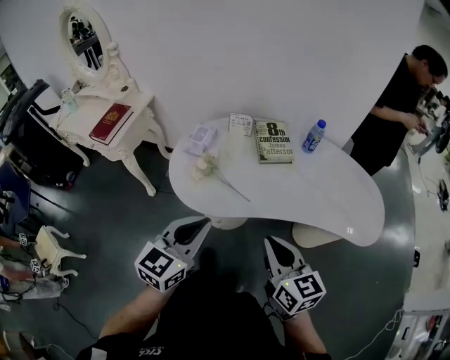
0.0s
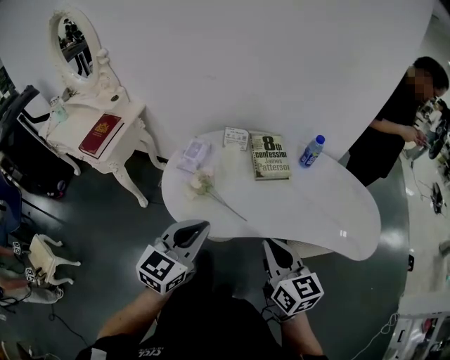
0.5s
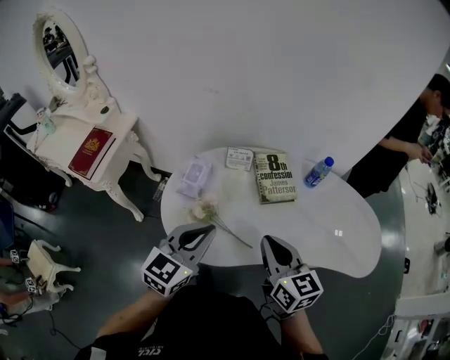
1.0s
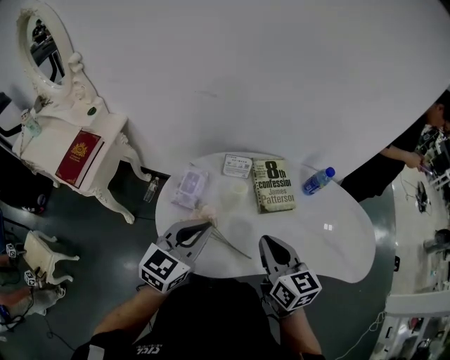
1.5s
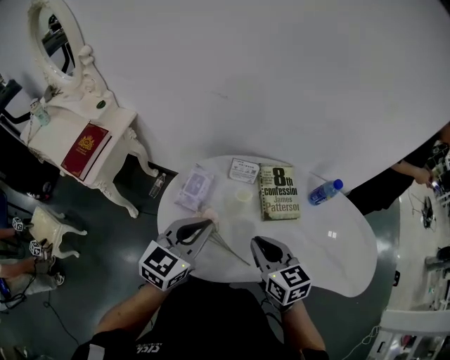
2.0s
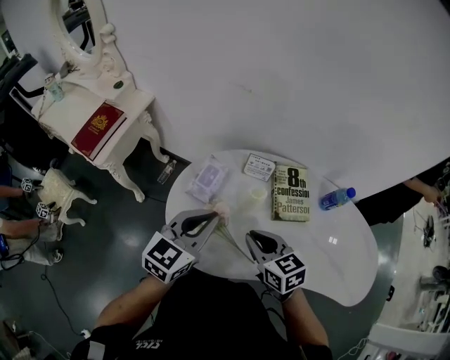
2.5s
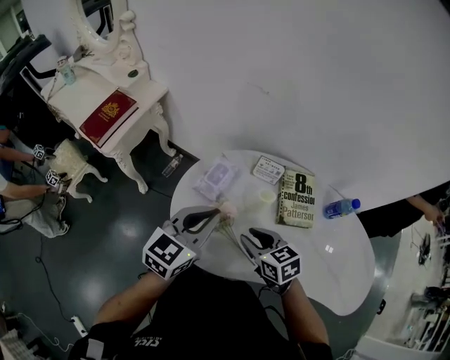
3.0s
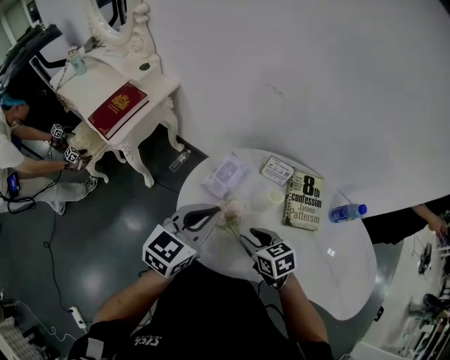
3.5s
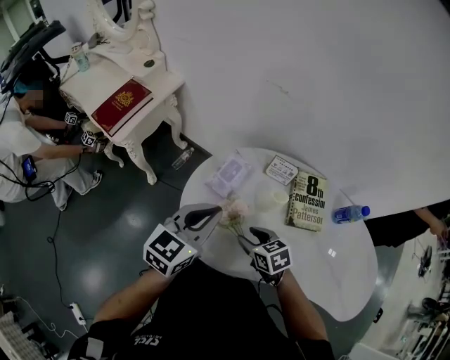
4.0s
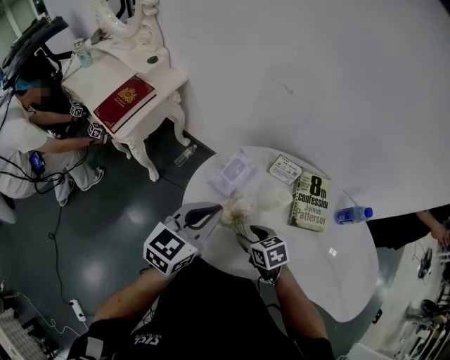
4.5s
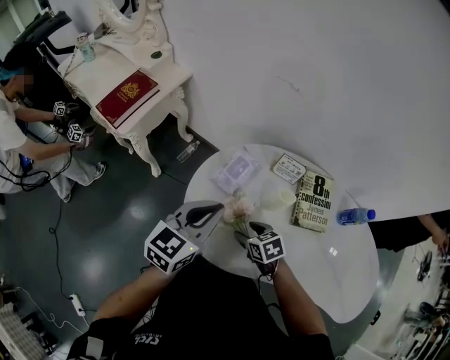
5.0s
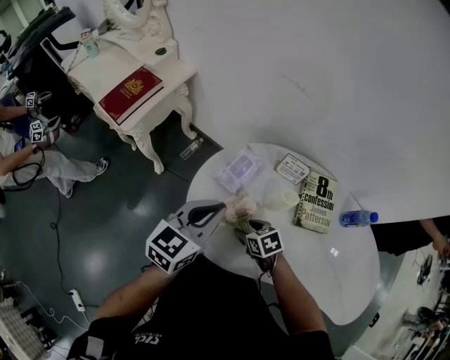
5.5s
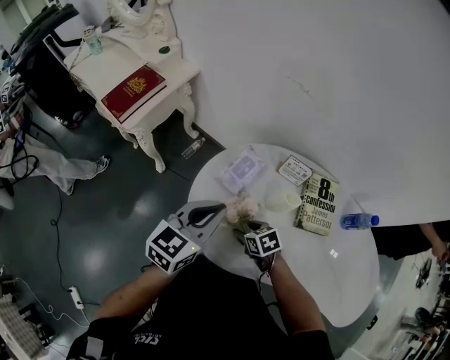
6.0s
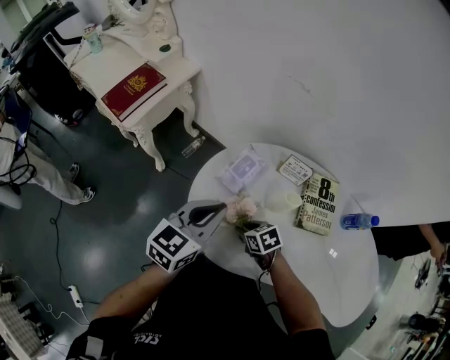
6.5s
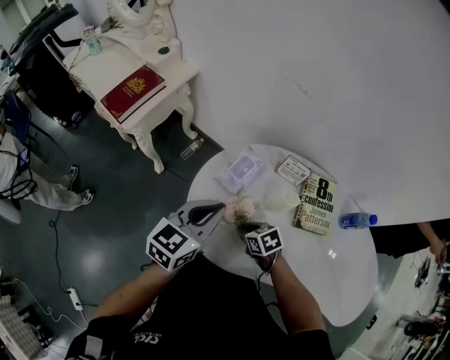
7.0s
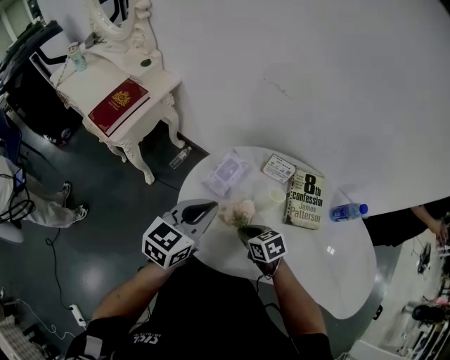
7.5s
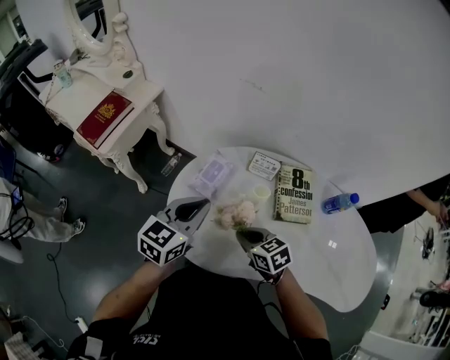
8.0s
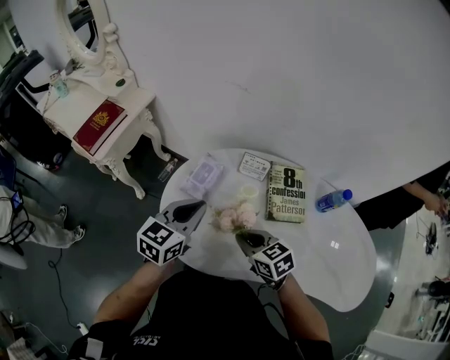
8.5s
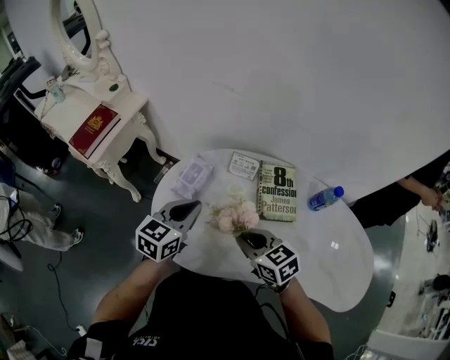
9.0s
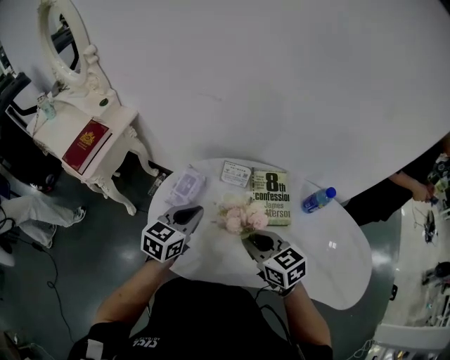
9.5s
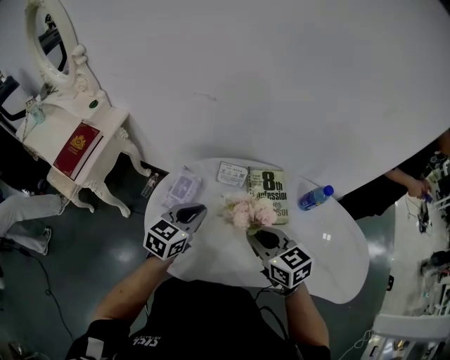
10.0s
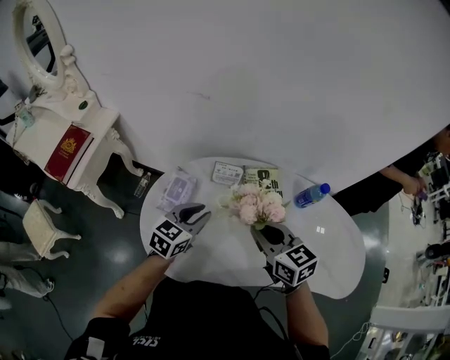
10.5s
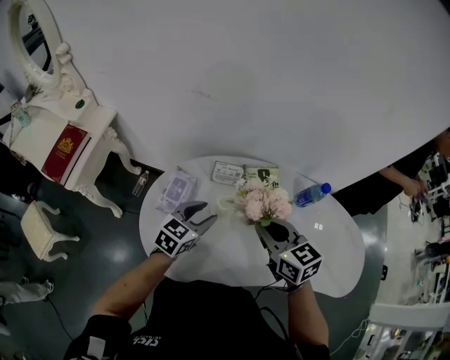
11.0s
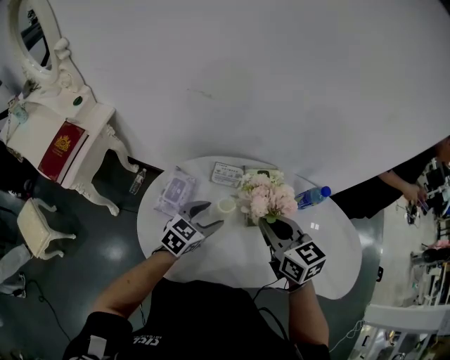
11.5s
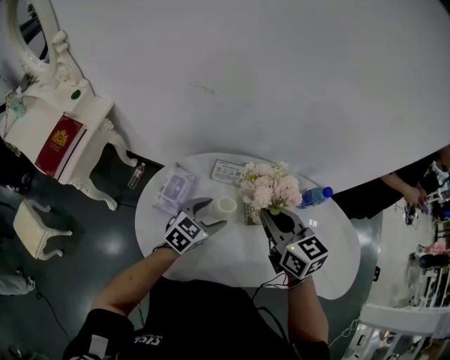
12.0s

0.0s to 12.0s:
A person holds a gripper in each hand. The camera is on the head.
0.0s to 2.0s: The left gripper goes approximately 30 cm forward. Meanwhile the right gripper shifts some 30 cm forward and to the left.
2.0s to 4.0s: The right gripper goes about 20 cm downward and to the left, rotates some 30 degrees, and opens up. Meanwhile the left gripper shifts roughly 5 cm to the left.
4.0s to 6.0s: The right gripper goes about 10 cm downward.
6.0s to 8.0s: The right gripper moves upward, about 10 cm, and closes up.
8.0s to 10.0s: The left gripper travels to the right and downward by about 10 cm; the right gripper heads upward and to the right, covering about 15 cm, and turns by some 20 degrees.
10.0s to 12.0s: The left gripper travels downward and to the right by about 10 cm, and opens. Meanwhile the right gripper shifts some 10 cm forward.

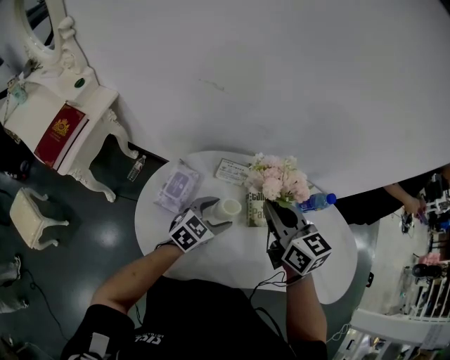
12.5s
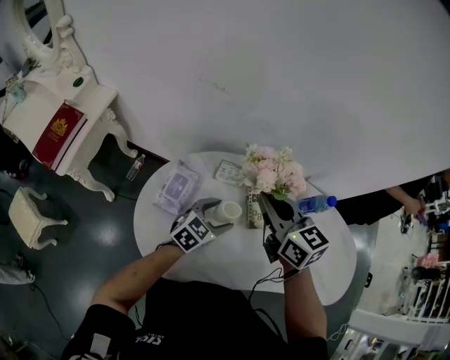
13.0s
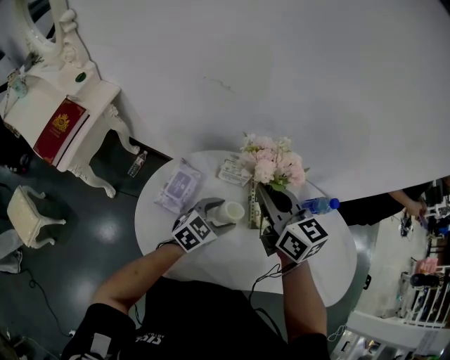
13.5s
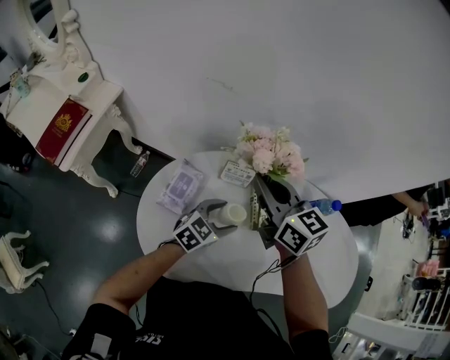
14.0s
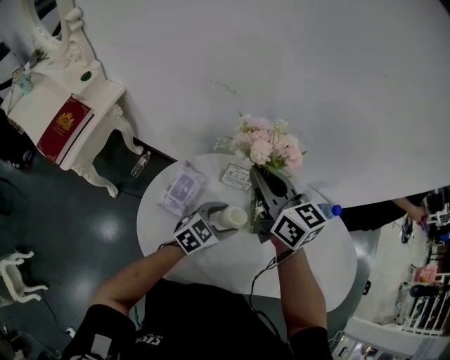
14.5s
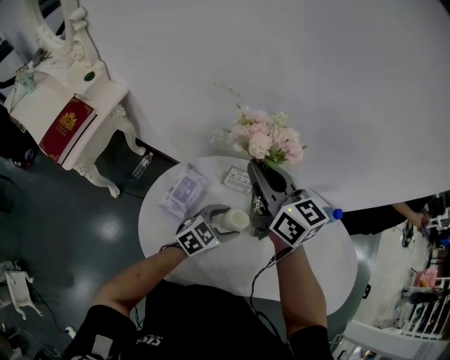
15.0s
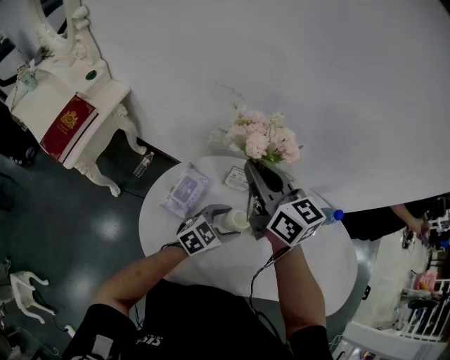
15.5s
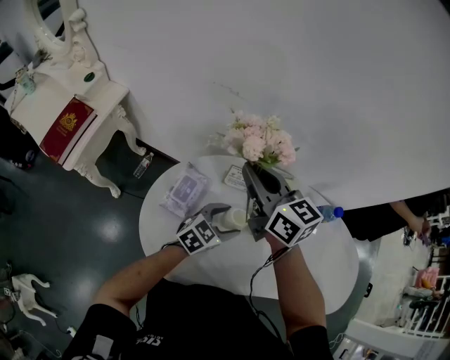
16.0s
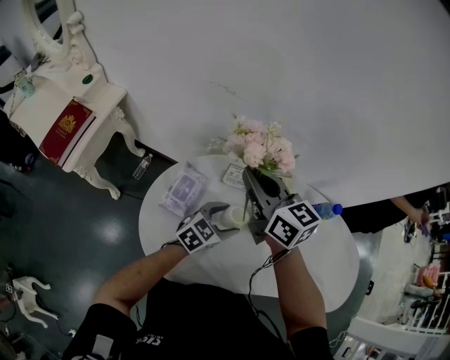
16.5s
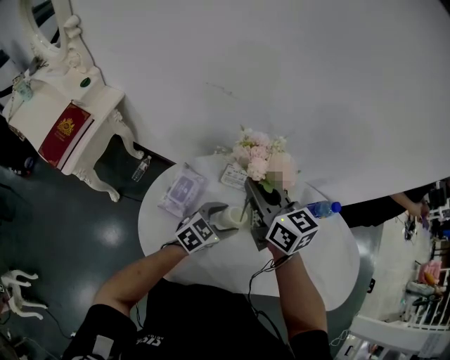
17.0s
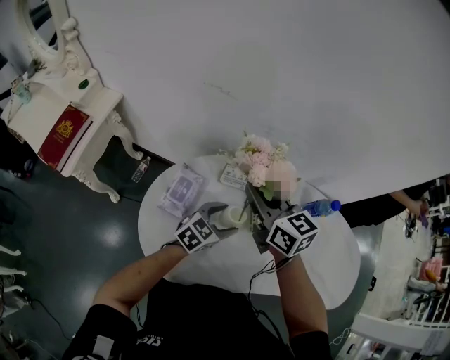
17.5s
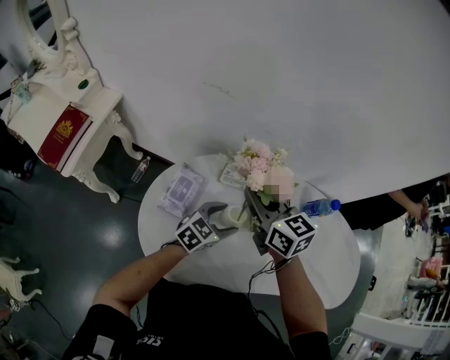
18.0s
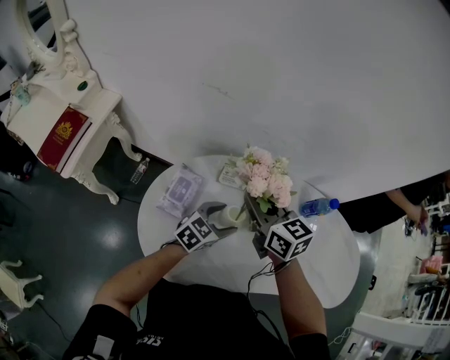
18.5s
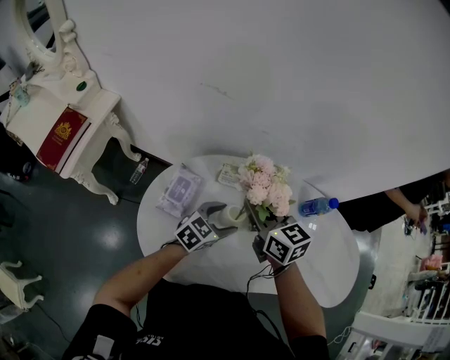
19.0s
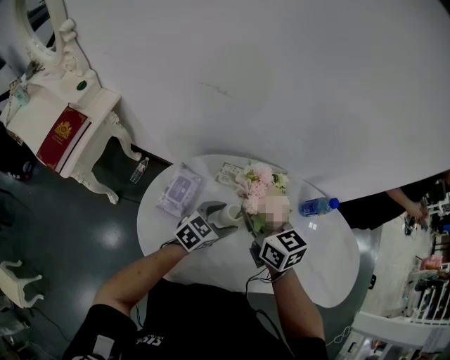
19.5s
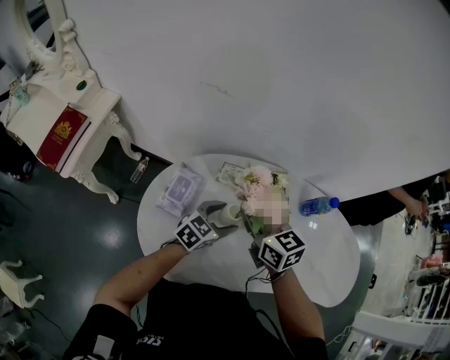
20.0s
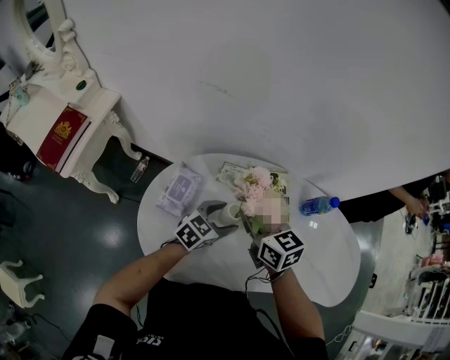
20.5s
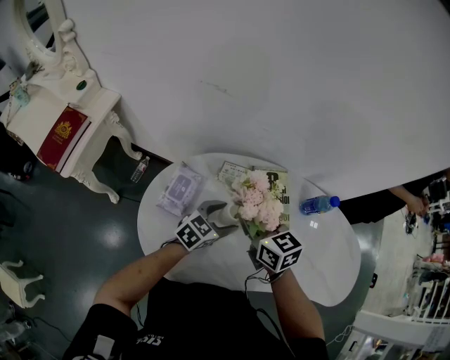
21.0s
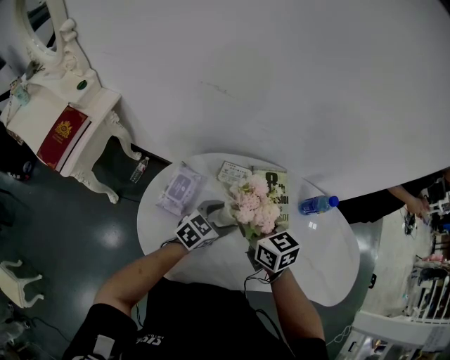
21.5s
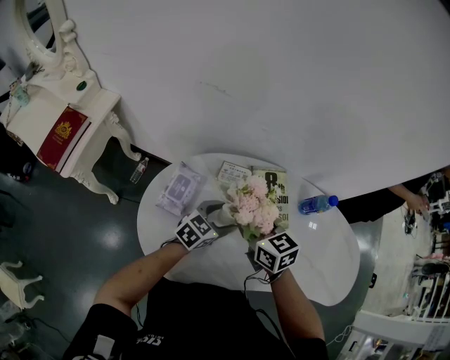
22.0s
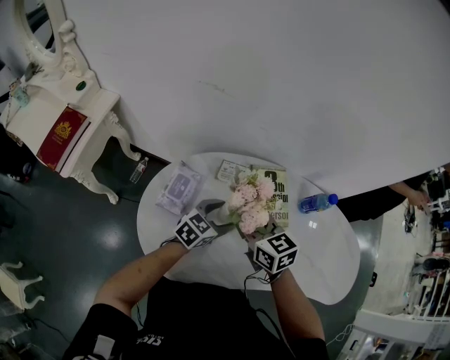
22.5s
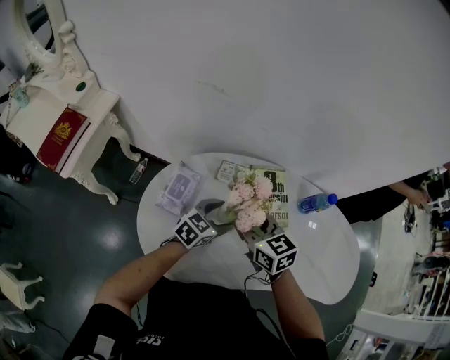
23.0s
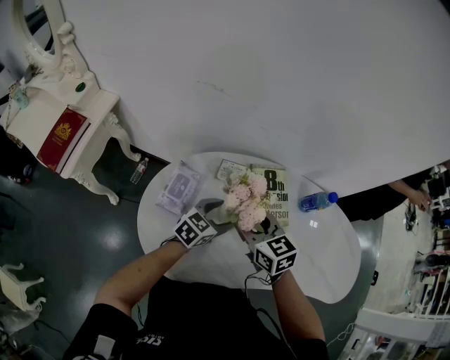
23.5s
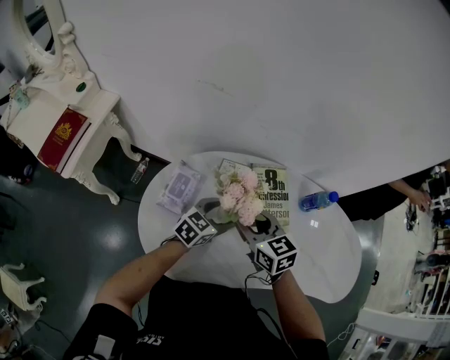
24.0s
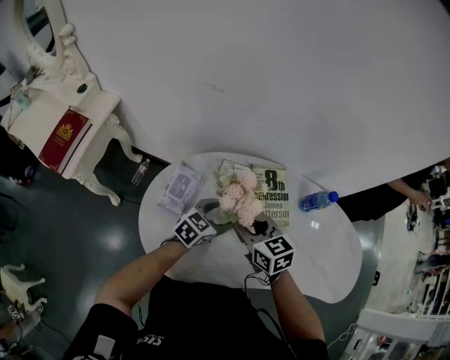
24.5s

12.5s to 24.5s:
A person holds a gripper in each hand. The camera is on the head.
12.5s to 14.5s: The right gripper travels to the left and forward by some 15 cm.
14.5s to 16.5s: There are only small adjustments of the grippers.
16.5s to 18.5s: The right gripper heads downward, covering about 5 cm.
18.5s to 20.5s: The grippers move only a little.
20.5s to 22.5s: The grippers move only a little.
22.5s to 24.5s: The right gripper opens.

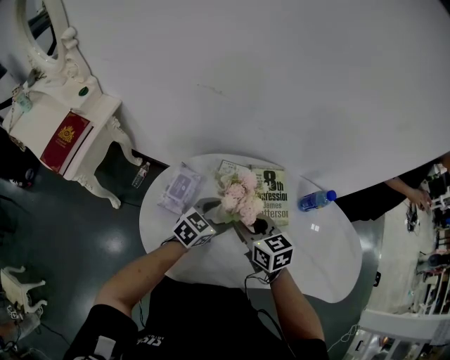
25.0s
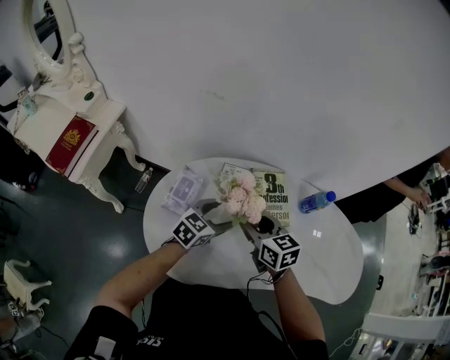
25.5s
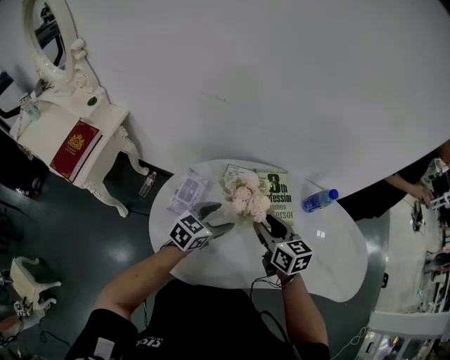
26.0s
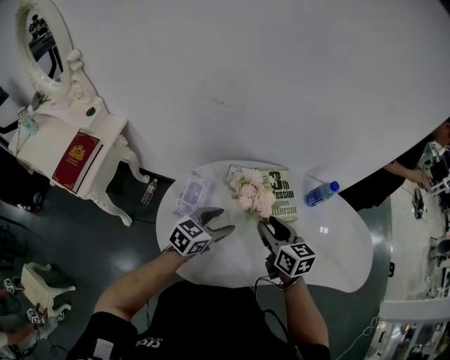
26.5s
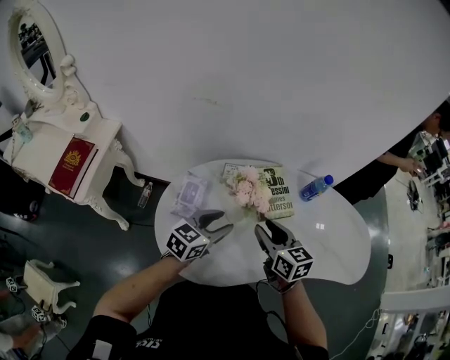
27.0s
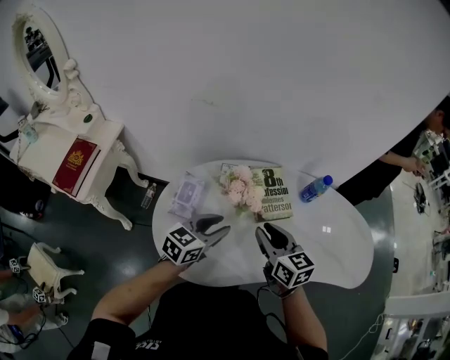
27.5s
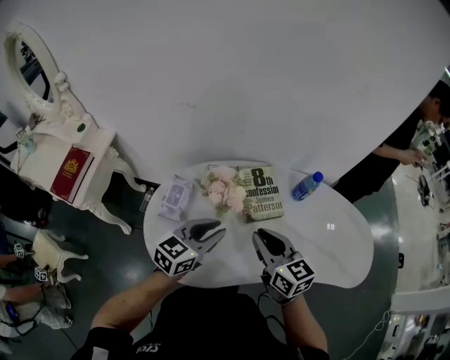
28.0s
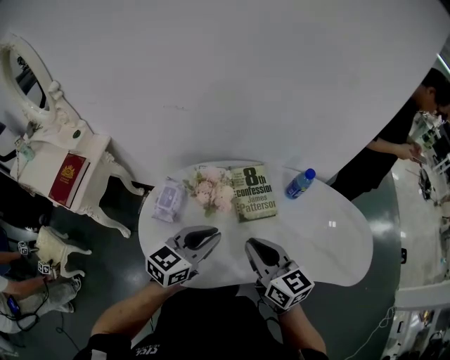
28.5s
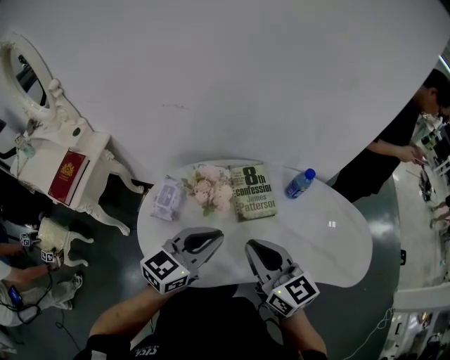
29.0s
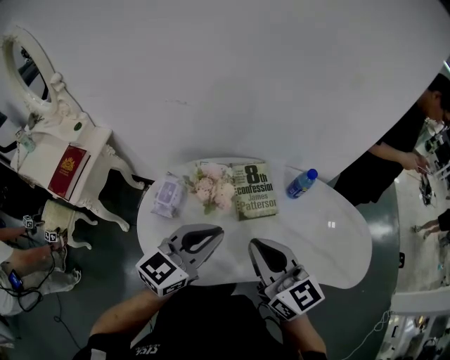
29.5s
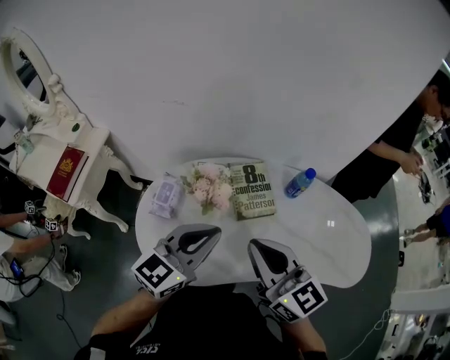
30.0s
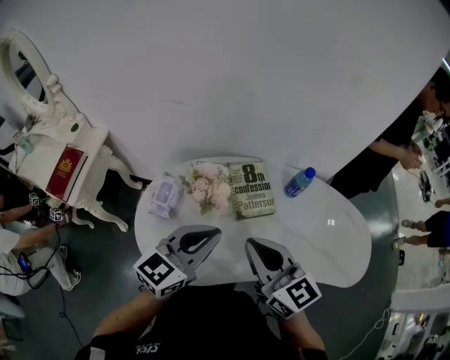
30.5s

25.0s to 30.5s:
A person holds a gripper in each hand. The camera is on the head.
25.0s to 27.0s: The right gripper shifts approximately 5 cm backward. Meanwhile the left gripper goes approximately 10 cm upward and backward, and closes.
27.0s to 28.5s: The grippers both shift upward and to the right by some 10 cm. The left gripper closes its fingers. The right gripper closes.
28.5s to 30.5s: Both grippers move upward, some 5 cm.
